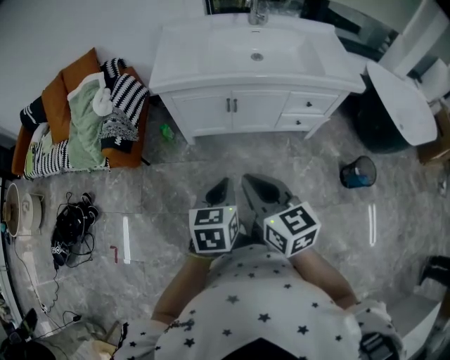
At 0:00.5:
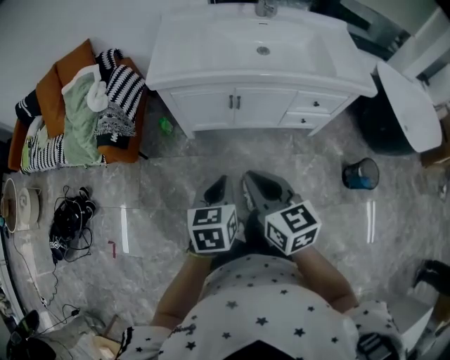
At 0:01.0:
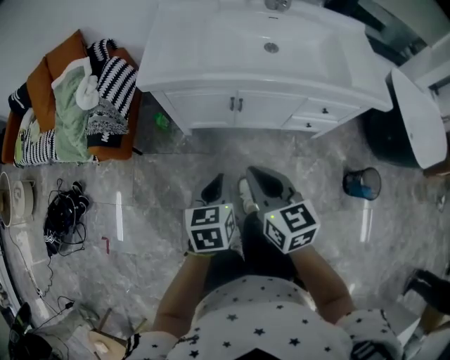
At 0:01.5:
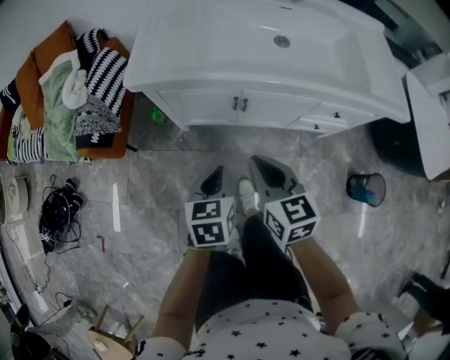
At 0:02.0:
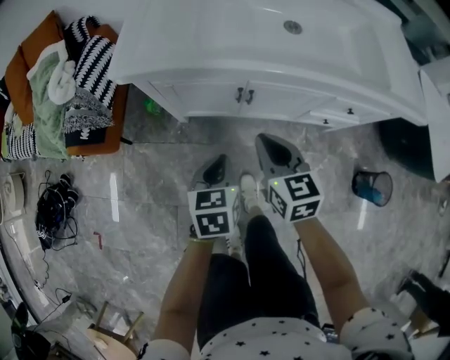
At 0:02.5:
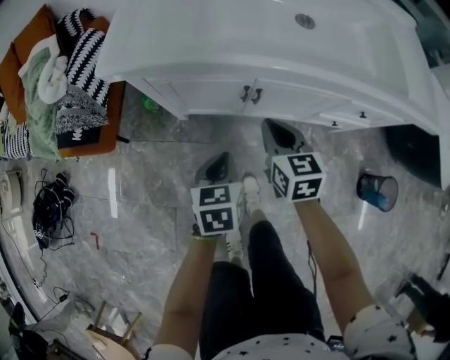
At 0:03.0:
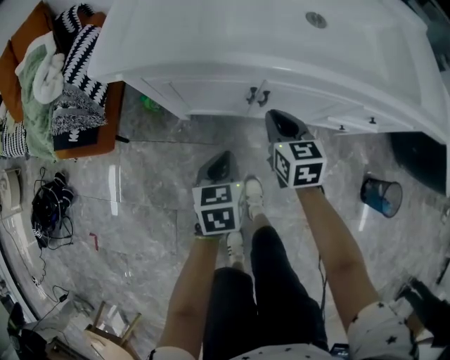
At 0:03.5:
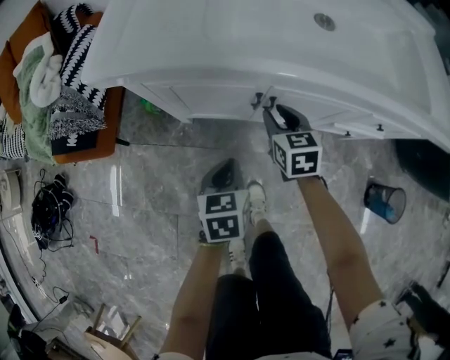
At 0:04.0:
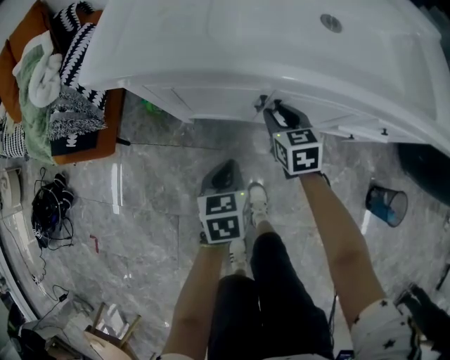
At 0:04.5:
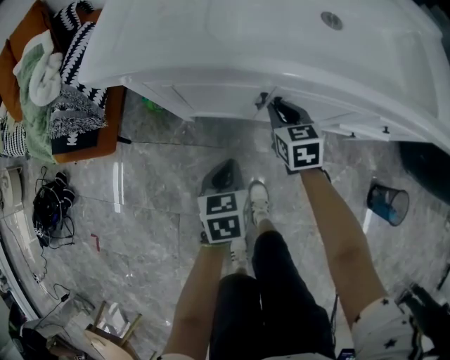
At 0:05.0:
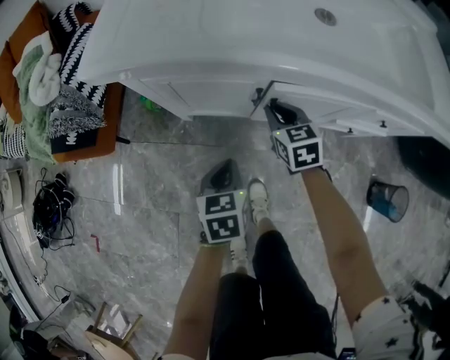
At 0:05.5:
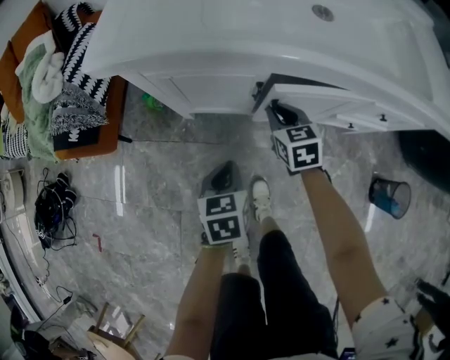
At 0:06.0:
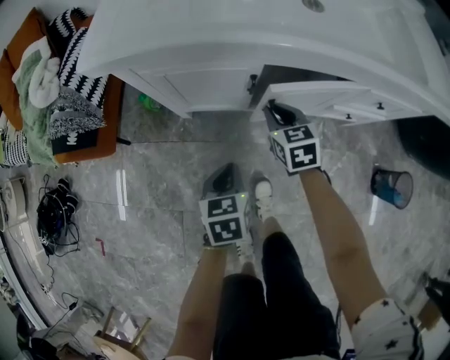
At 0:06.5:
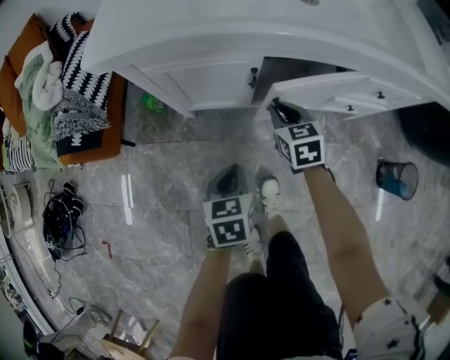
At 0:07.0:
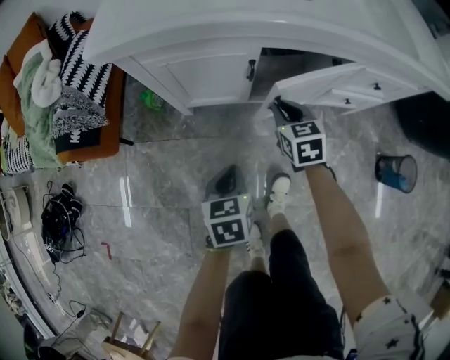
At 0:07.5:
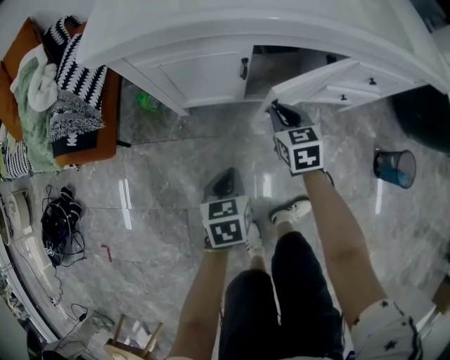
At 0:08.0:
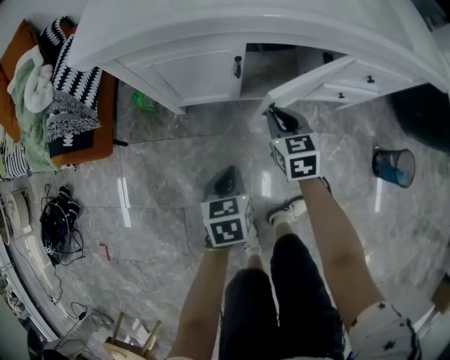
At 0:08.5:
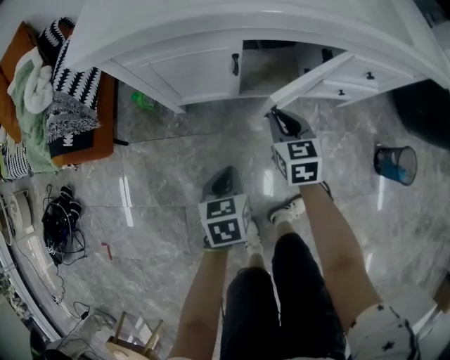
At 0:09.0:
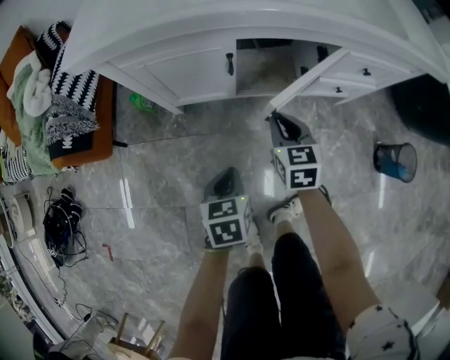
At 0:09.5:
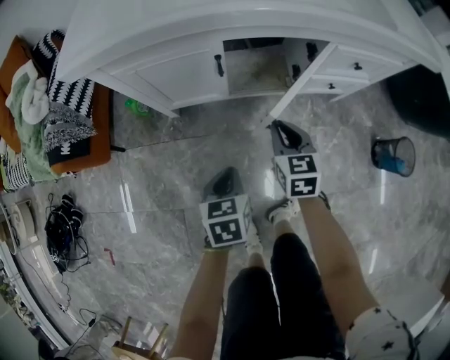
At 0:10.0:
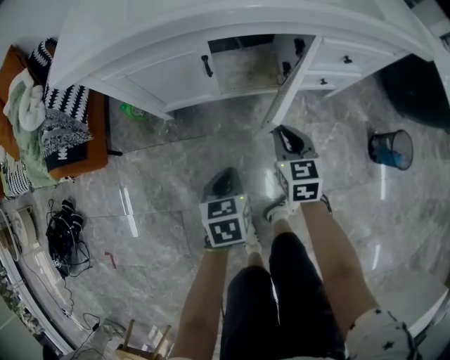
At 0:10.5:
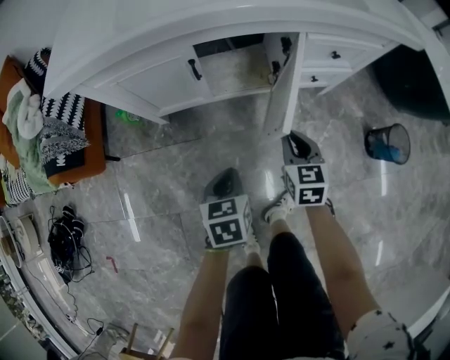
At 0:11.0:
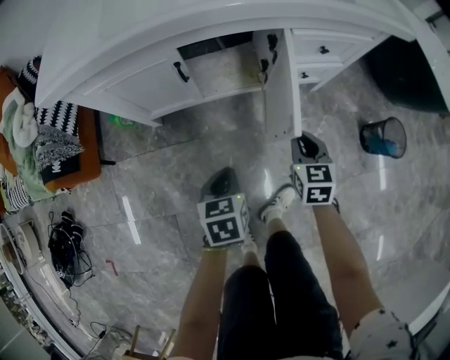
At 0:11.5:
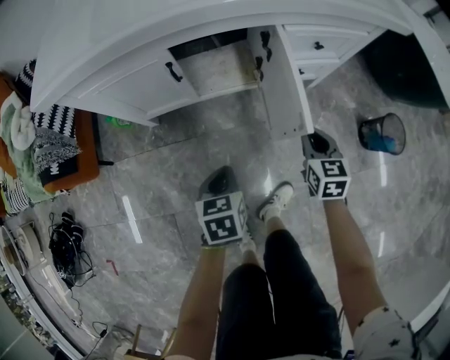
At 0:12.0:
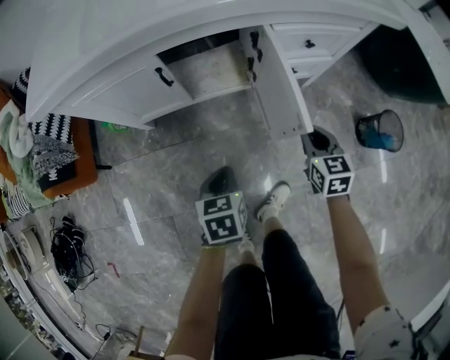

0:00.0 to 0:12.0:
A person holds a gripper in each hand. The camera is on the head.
0:00.0 to 0:02.0: Both grippers move forward and downward, approximately 35 cm.
0:02.0 to 0:04.0: The right gripper moves downward and forward, roughly 25 cm, and opens up, while the left gripper heads downward and forward, covering approximately 15 cm.
0:04.0 to 0:06.0: The grippers both shift backward by about 5 cm.
0:06.0 to 0:08.0: Both grippers travel together backward, about 5 cm.
0:08.0 to 0:10.0: The left gripper goes approximately 5 cm to the right; the right gripper travels to the right and backward by some 10 cm.
0:10.0 to 0:12.0: The left gripper moves to the right, roughly 10 cm; the right gripper heads to the right, covering approximately 20 cm.

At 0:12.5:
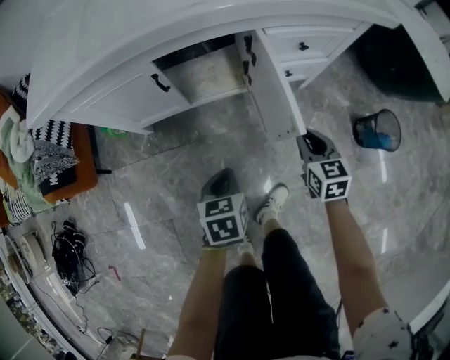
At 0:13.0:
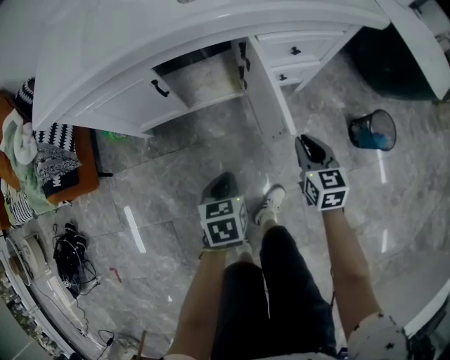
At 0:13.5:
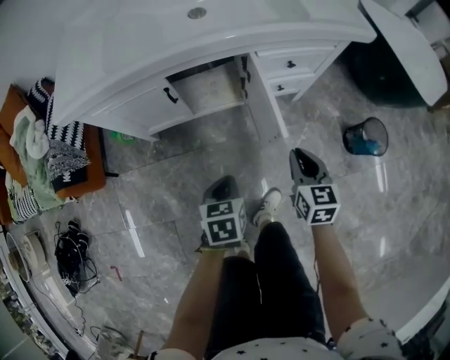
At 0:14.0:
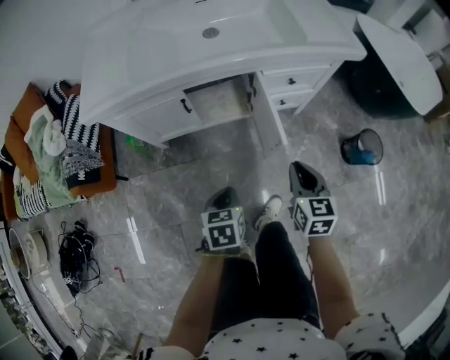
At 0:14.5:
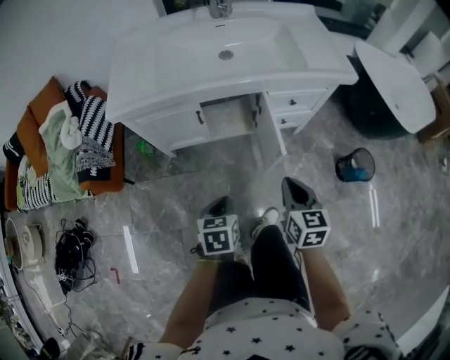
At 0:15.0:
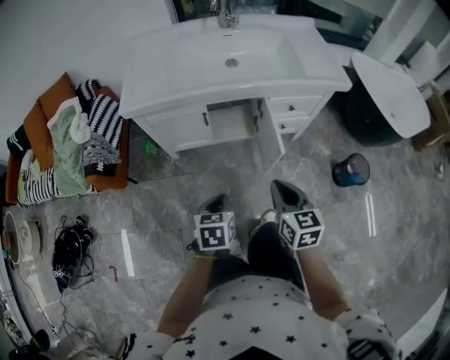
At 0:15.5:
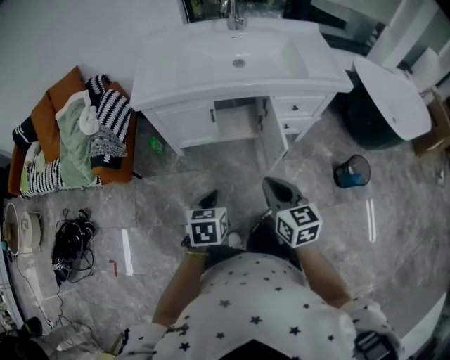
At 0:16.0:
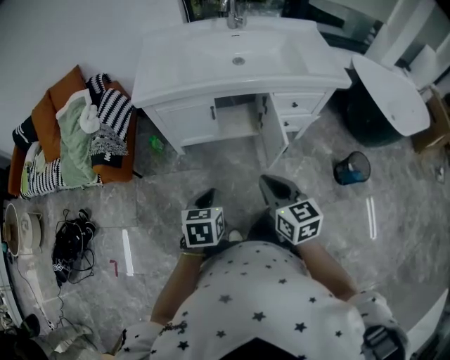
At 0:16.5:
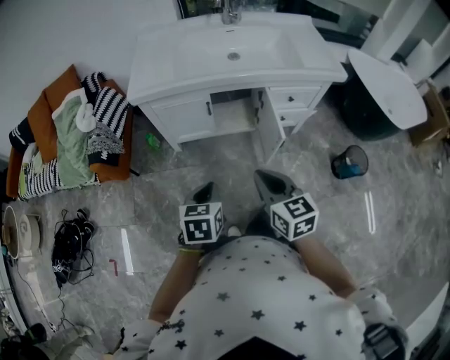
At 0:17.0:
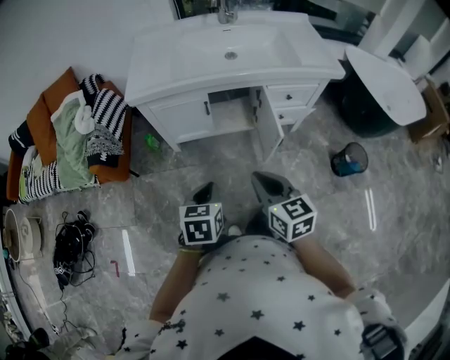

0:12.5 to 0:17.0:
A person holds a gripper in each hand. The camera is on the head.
0:12.5 to 0:14.5: The two grippers go roughly 25 cm upward and backward.
0:14.5 to 0:17.0: The right gripper shifts about 20 cm to the left, backward and upward, while the left gripper heads upward, to the left and backward, covering about 15 cm.

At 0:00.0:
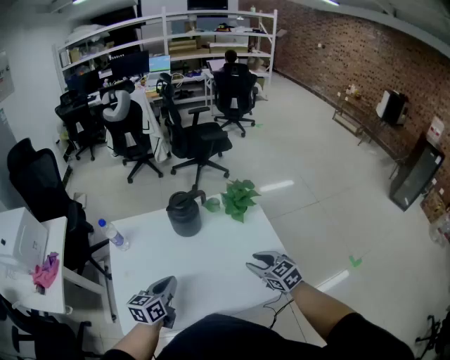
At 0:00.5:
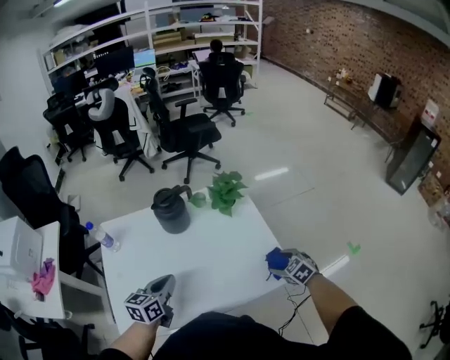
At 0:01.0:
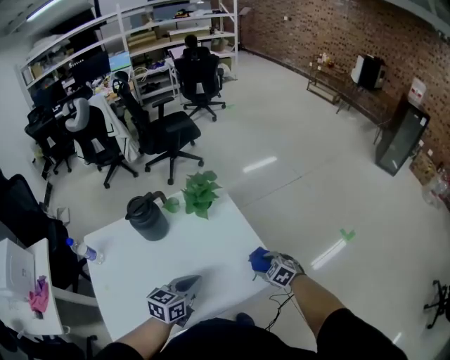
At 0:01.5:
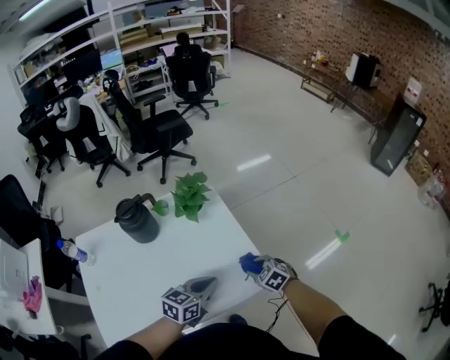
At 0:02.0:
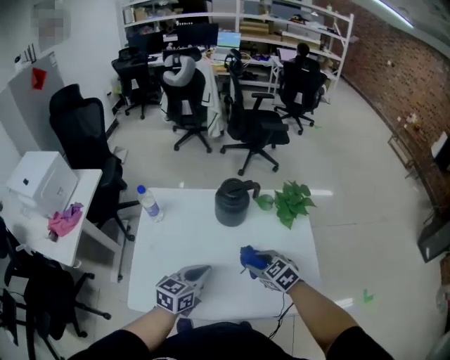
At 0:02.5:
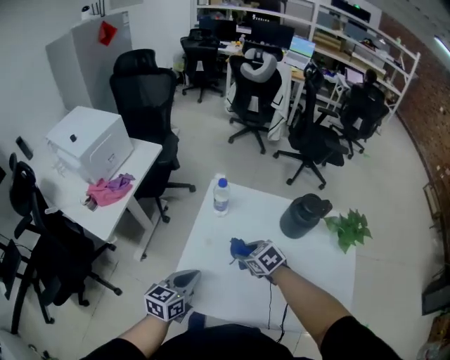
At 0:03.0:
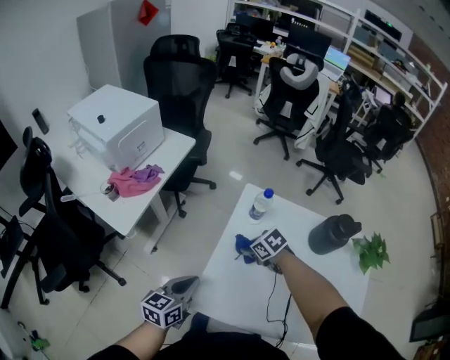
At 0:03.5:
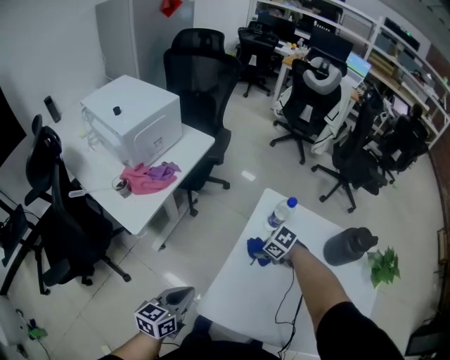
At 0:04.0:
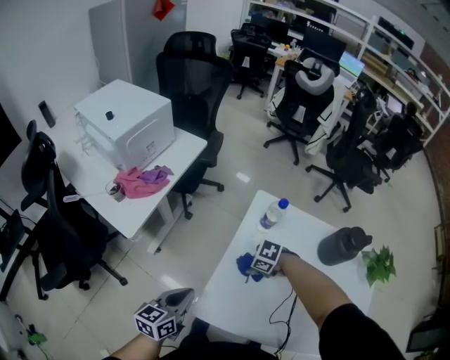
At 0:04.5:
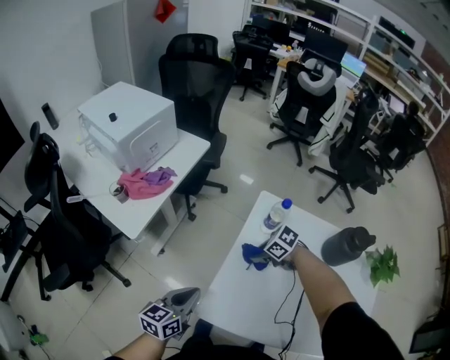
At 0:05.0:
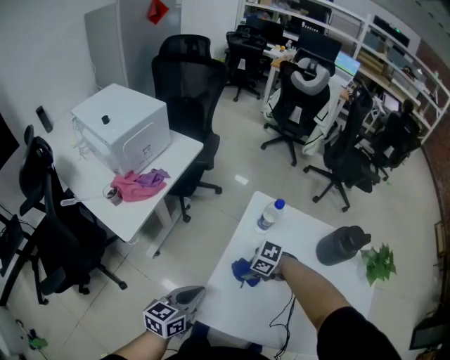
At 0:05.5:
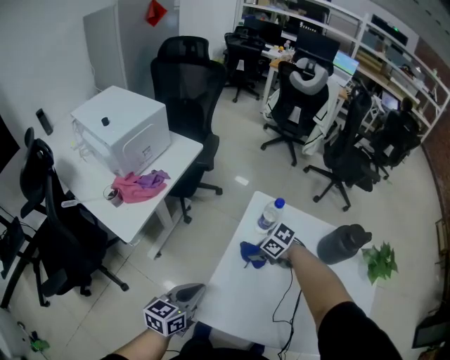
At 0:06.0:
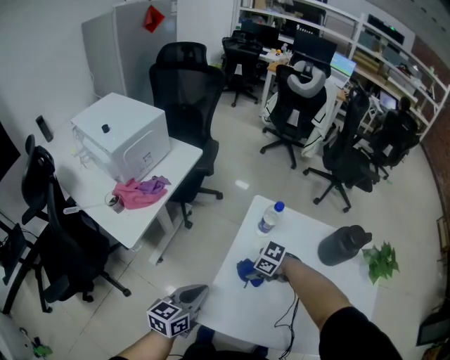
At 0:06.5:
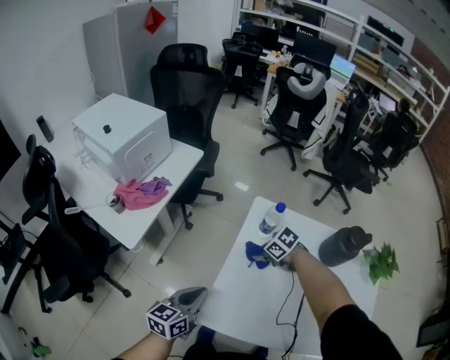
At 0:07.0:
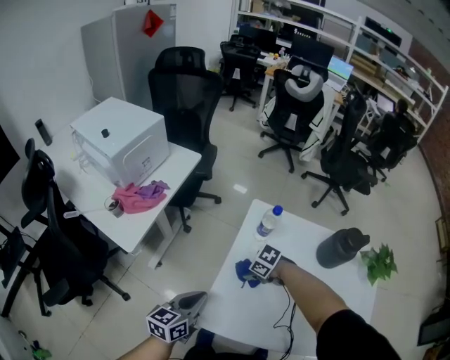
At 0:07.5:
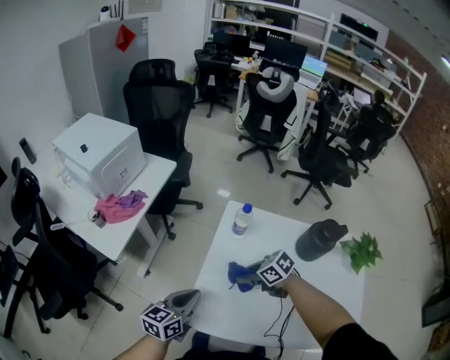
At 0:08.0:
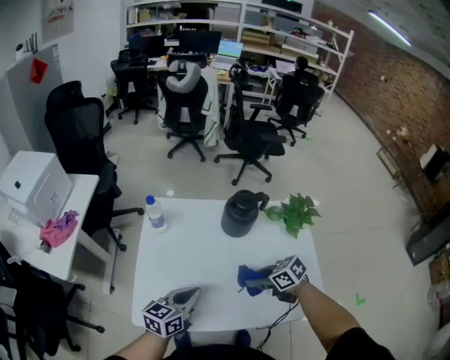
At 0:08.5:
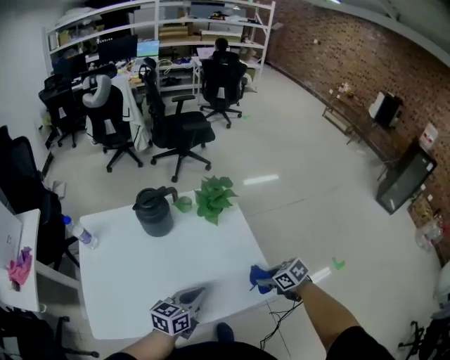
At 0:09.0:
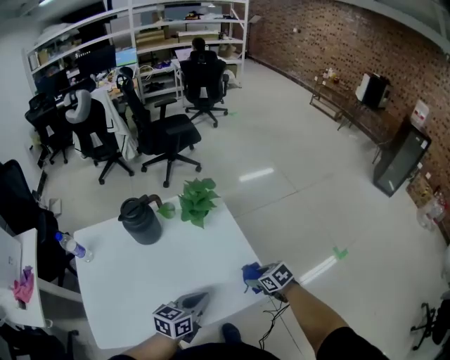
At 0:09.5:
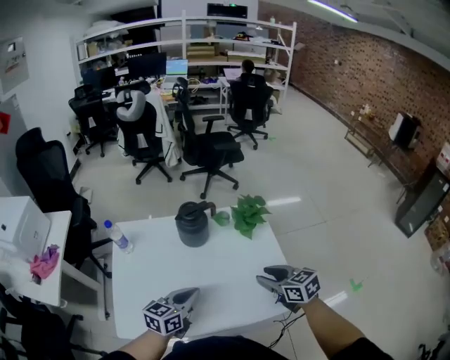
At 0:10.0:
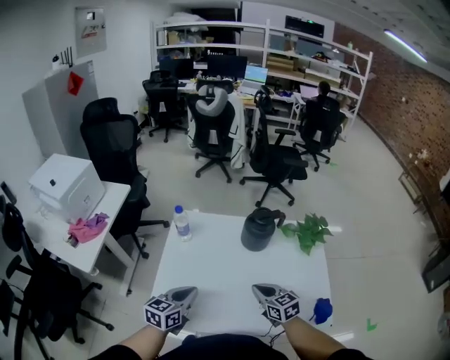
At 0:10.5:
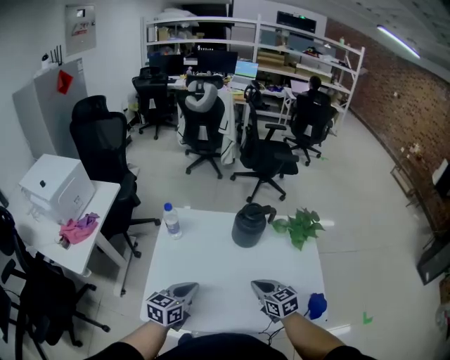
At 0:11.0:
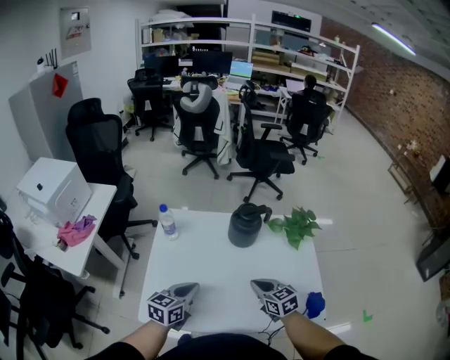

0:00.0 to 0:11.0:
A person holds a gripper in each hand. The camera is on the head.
0:00.0 to 0:02.0: The right gripper moves about 15 cm downward and comes back, rotates about 30 degrees, and opens, then closes once more.
0:02.0 to 0:03.5: The pair of grippers is taken roughly 40 cm. The right gripper changes its angle by roughly 50 degrees. The left gripper swivels roughly 40 degrees.
0:03.5 to 0:05.5: The left gripper ends up about 5 cm from where it was.
0:05.5 to 0:07.5: The left gripper shifts by some 5 cm. Meanwhile the right gripper changes place by some 10 cm, and changes its angle by approximately 20 degrees.
0:07.5 to 0:09.0: The two grippers travel together, some 60 cm. The right gripper rotates some 60 degrees, while the left gripper changes its angle by about 50 degrees.
0:09.0 to 0:11.0: Both grippers move to the left, about 35 cm. The left gripper swivels some 30 degrees; the right gripper turns by about 30 degrees, and closes up.
